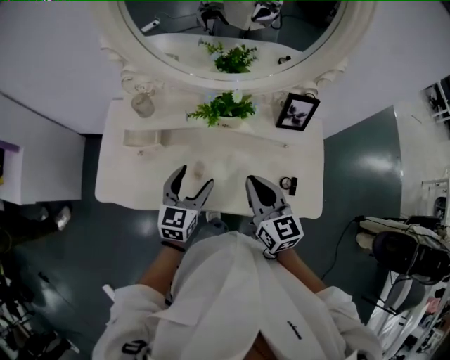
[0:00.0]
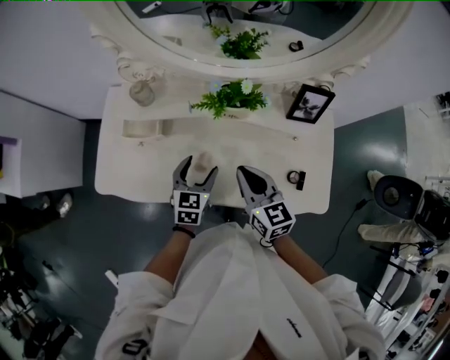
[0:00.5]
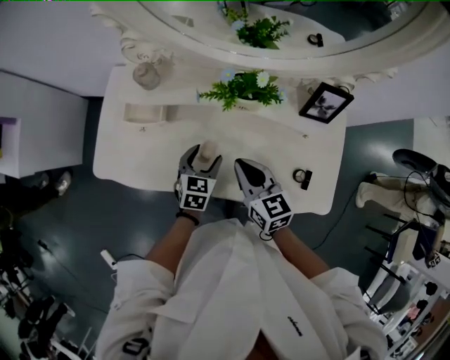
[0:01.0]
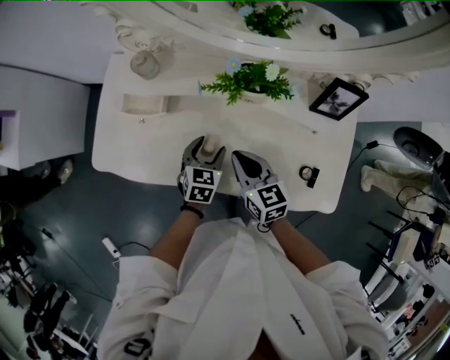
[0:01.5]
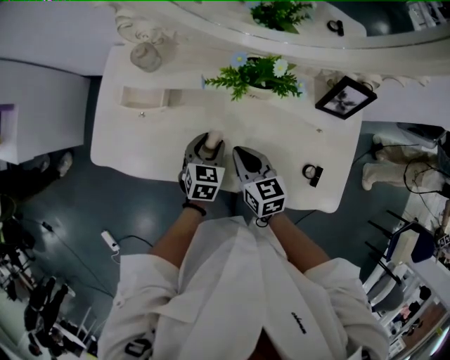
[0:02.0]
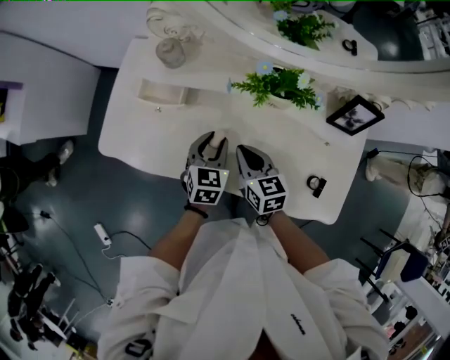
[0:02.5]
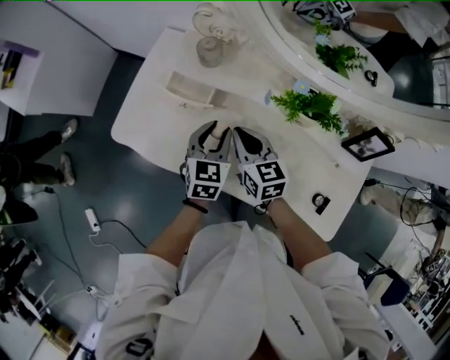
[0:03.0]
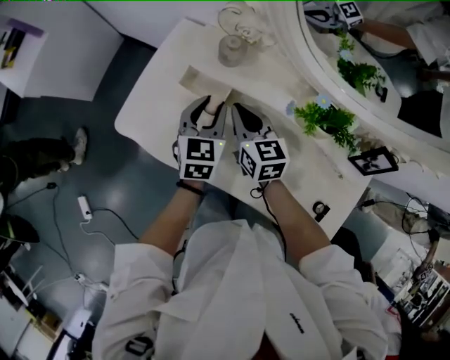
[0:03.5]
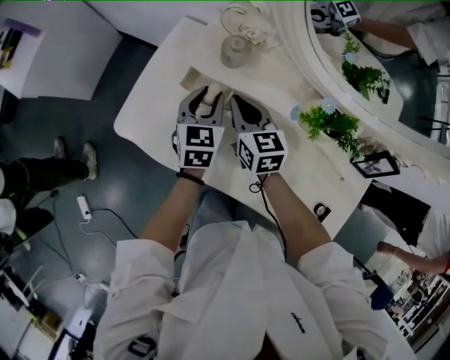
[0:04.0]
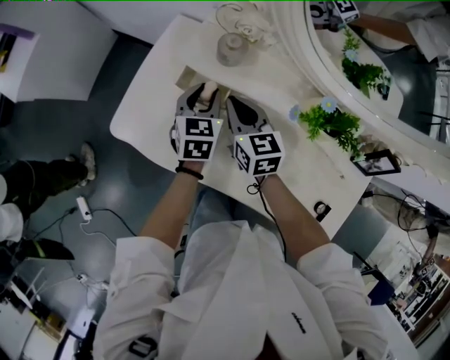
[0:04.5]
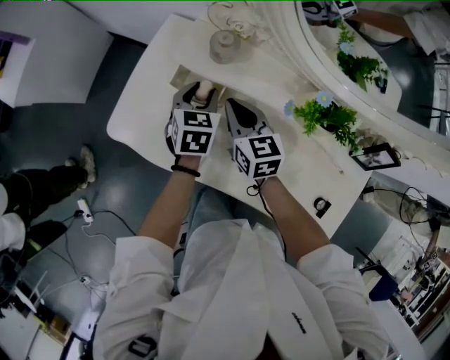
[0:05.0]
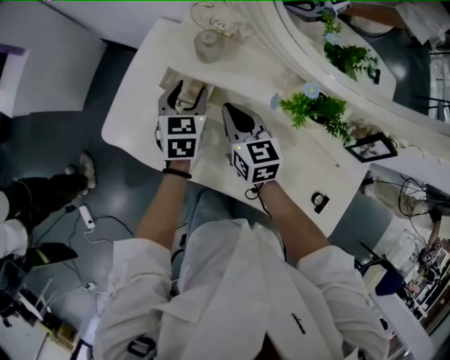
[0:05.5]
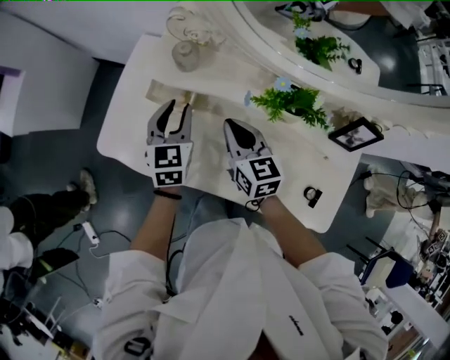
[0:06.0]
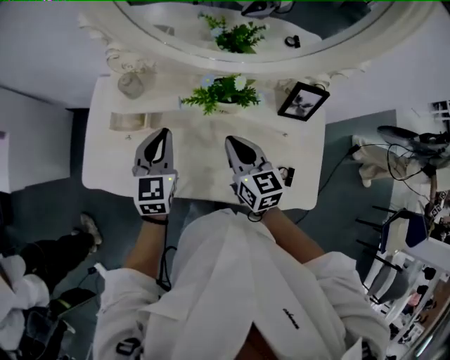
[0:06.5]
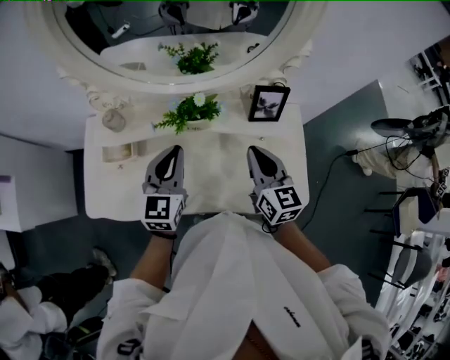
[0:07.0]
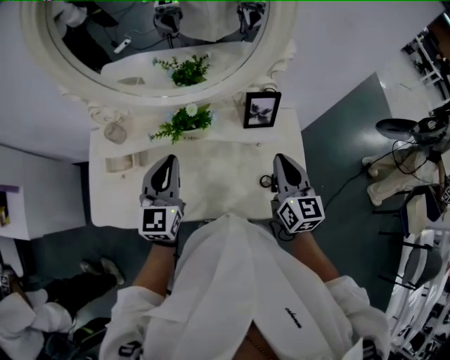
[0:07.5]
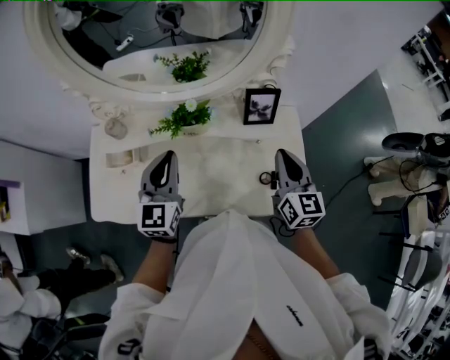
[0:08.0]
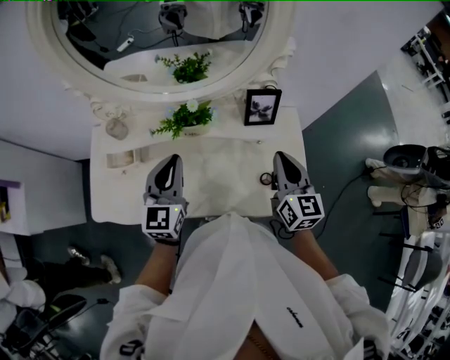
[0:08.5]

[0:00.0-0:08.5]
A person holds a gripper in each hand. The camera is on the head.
0:00.0 to 0:02.0: The grippers both shift downward by roughly 20 cm. The right gripper swivels about 20 degrees; the left gripper turns by approximately 30 degrees, and closes.
0:02.0 to 0:04.0: The left gripper shifts about 25 cm forward, to the left and upward, and rotates some 30 degrees; the right gripper goes approximately 25 cm forward and to the left.
0:04.0 to 0:06.5: The right gripper moves to the right, backward and upward, some 30 cm, and turns by about 20 degrees; the left gripper is displaced to the right, upward and backward by approximately 20 cm, and rotates some 20 degrees.
0:06.5 to 0:08.5: The left gripper travels to the right and upward by about 15 cm, while the right gripper shifts about 25 cm to the right, and turns by some 30 degrees.

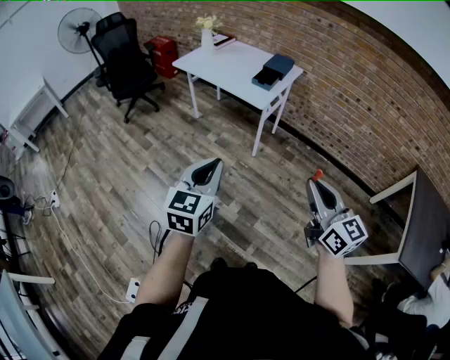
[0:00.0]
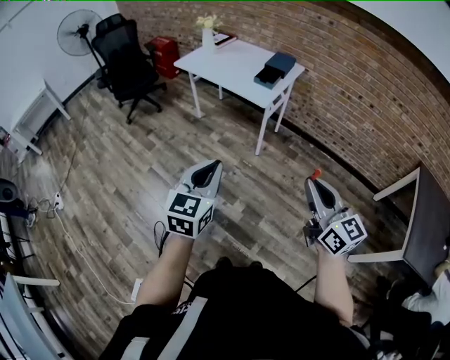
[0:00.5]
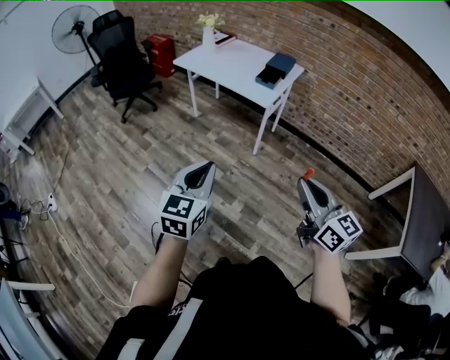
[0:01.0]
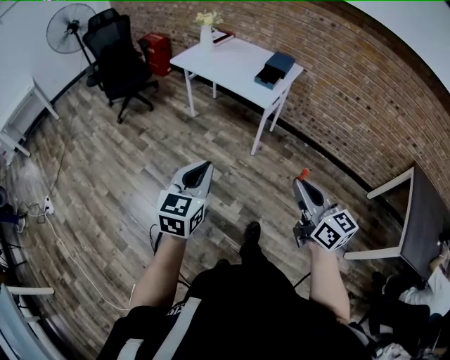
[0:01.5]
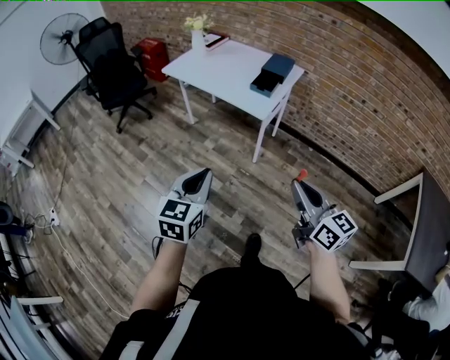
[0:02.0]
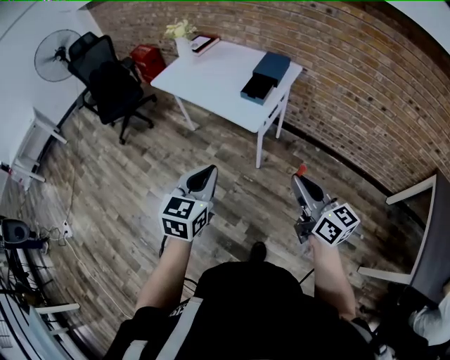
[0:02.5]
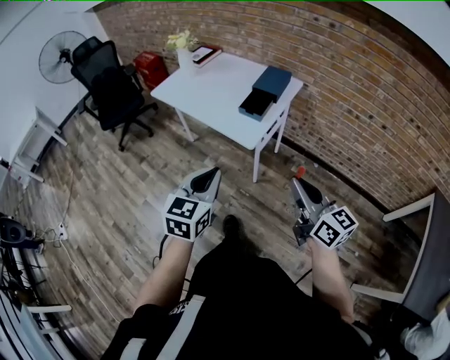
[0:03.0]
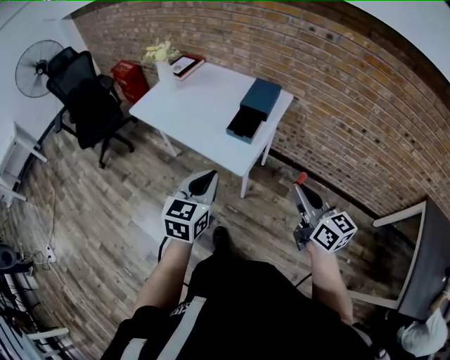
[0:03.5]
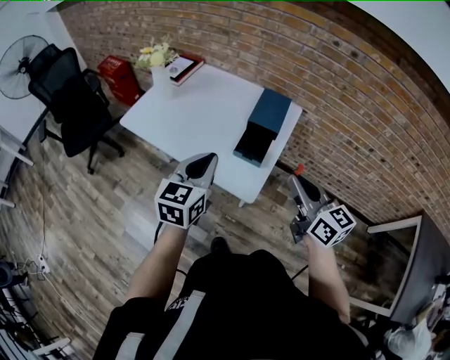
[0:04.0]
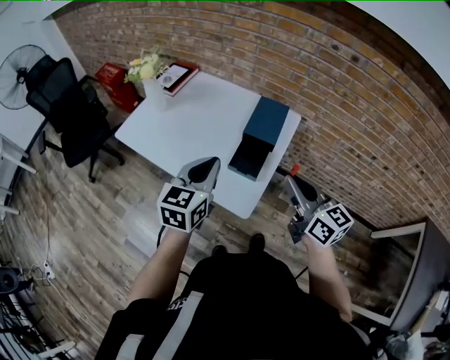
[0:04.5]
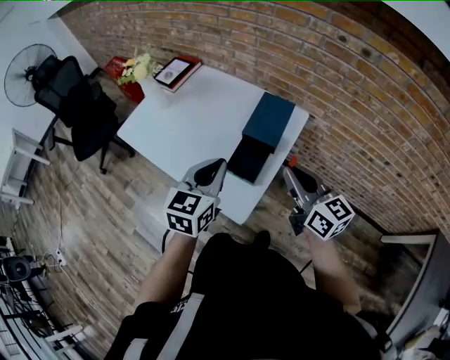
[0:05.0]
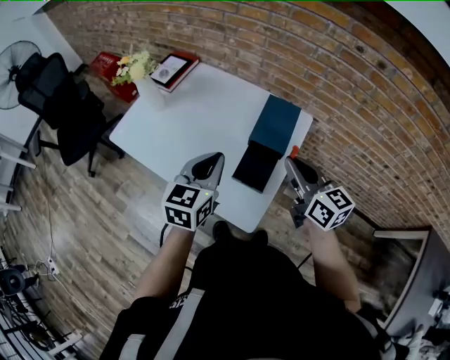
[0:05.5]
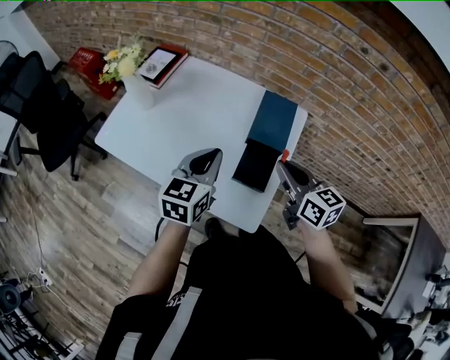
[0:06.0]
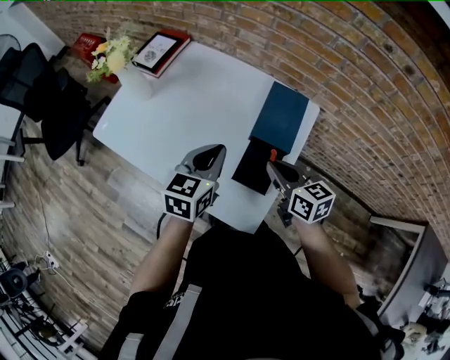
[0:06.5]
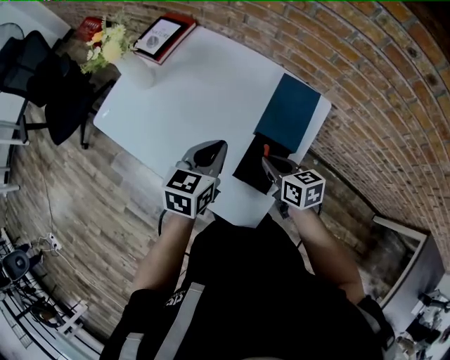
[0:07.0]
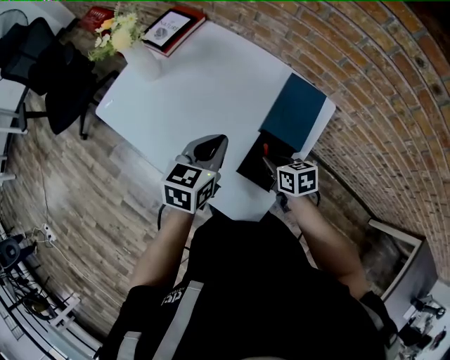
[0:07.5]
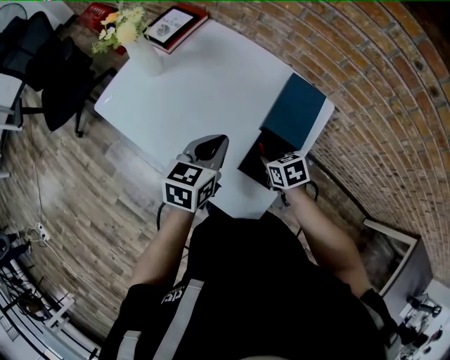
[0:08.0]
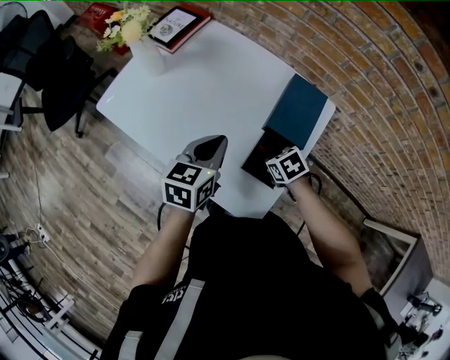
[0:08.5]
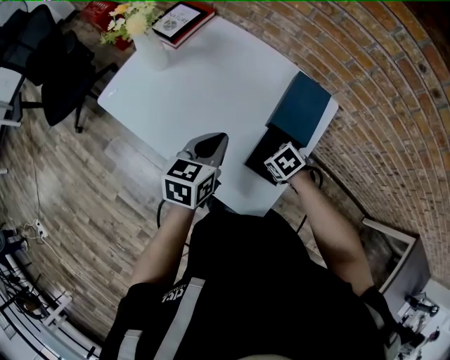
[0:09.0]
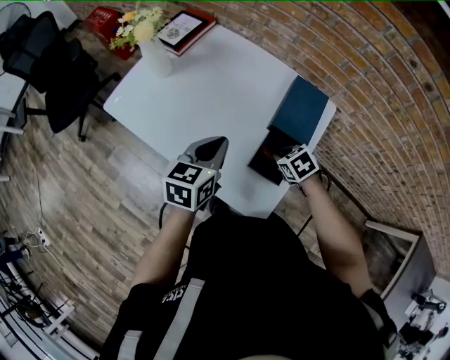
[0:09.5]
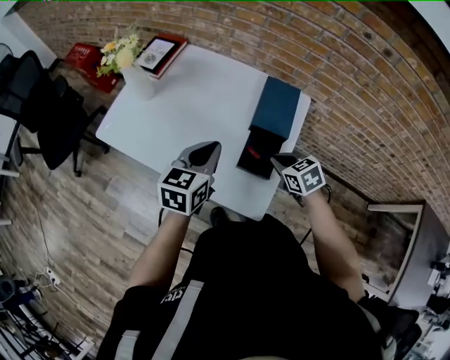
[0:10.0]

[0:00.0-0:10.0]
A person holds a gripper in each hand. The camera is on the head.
0:00.0 to 0:02.0: The two grippers go about 15 cm forward.
0:02.0 to 0:04.0: The pair of grippers is taken forward, some 50 cm.
0:04.0 to 0:06.0: The left gripper shifts roughly 20 cm forward. The right gripper is displaced forward and downward by about 25 cm.
0:06.0 to 0:08.0: The left gripper heads downward, covering some 5 cm, while the right gripper heads downward, covering approximately 25 cm, and tilts its fingers about 40 degrees downward.
0:08.0 to 0:10.0: The left gripper moves about 5 cm. Meanwhile the right gripper travels upward by approximately 10 cm.

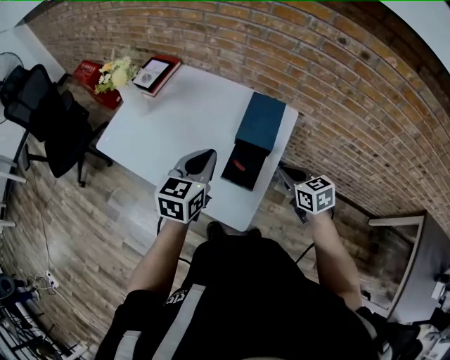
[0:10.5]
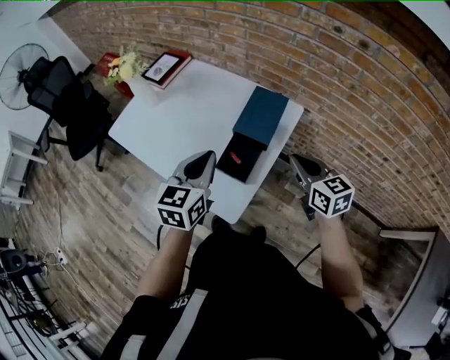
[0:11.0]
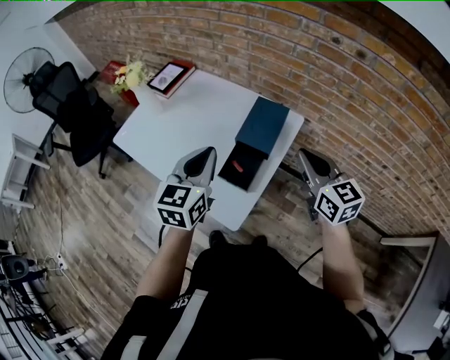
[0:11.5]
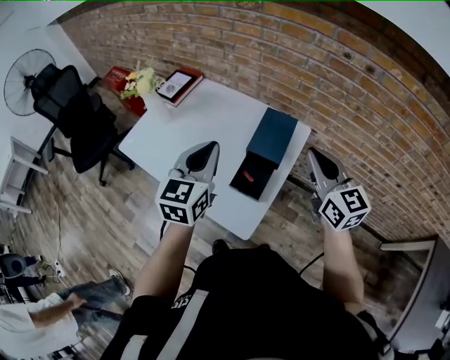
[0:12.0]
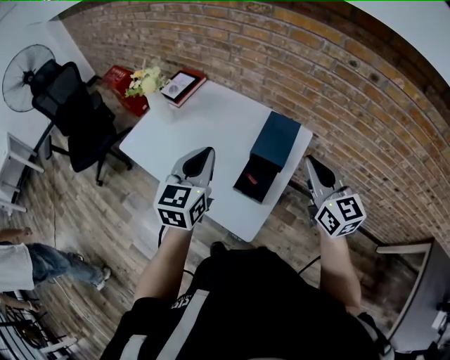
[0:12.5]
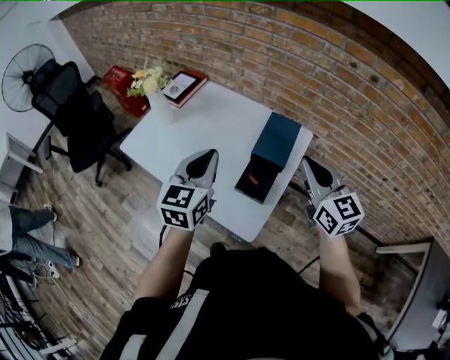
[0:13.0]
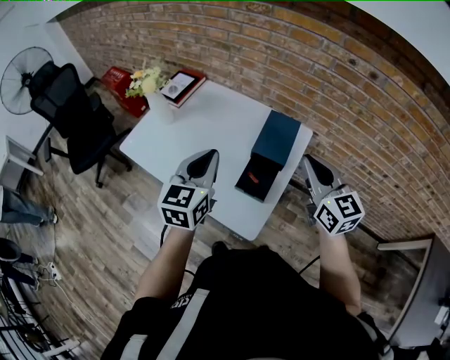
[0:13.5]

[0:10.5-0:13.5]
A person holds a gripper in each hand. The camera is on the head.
0:10.5 to 0:12.0: The left gripper shifts roughly 10 cm upward. The right gripper shifts approximately 20 cm upward, and points its fingers approximately 30 degrees further upward.
0:12.0 to 0:13.5: The grippers move only a little.

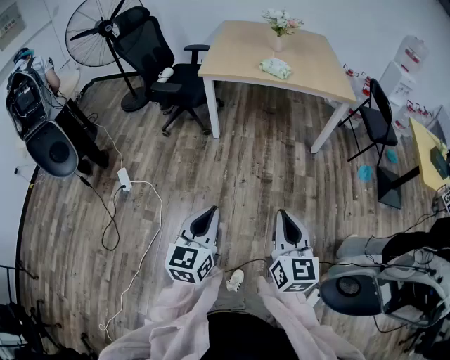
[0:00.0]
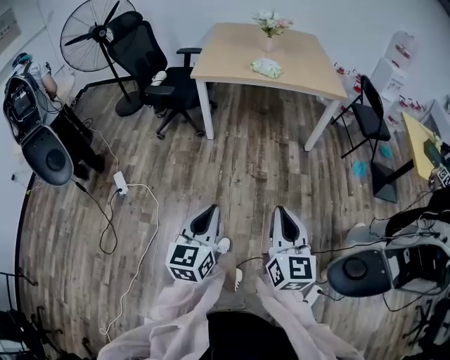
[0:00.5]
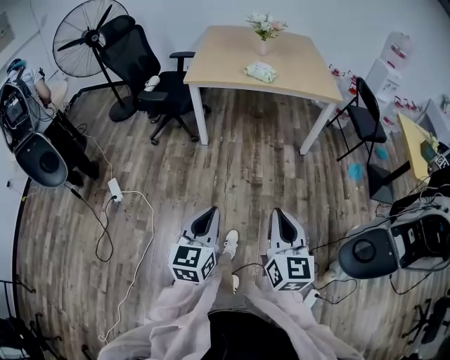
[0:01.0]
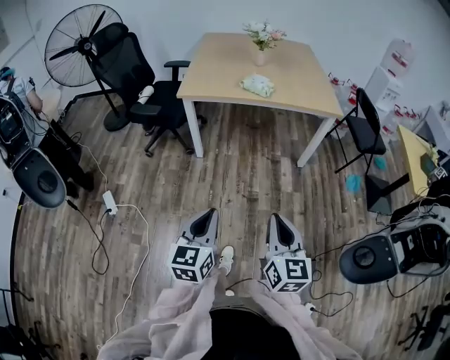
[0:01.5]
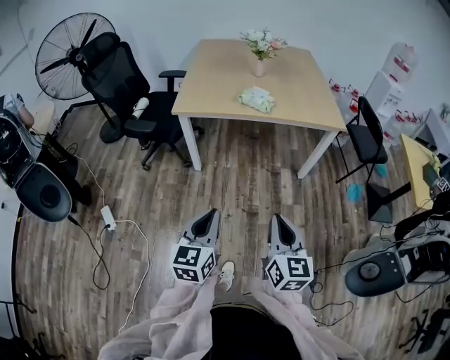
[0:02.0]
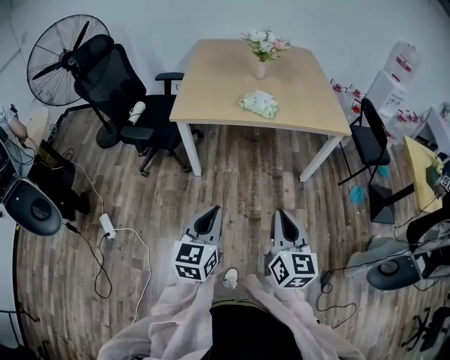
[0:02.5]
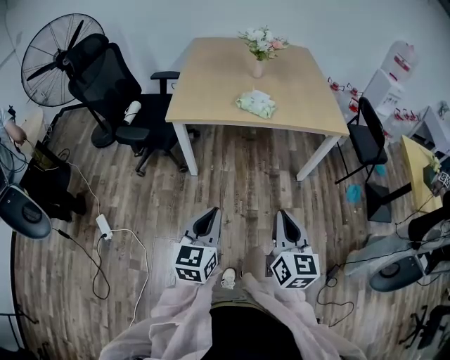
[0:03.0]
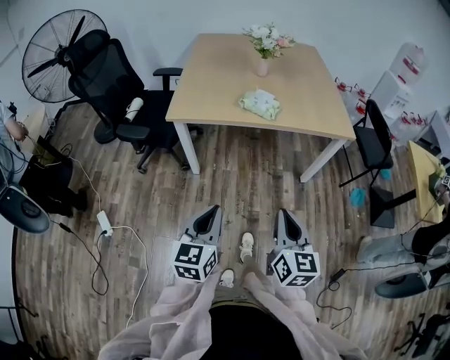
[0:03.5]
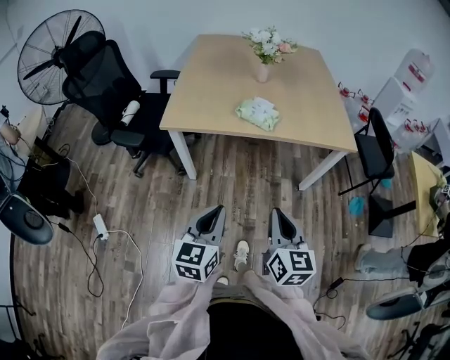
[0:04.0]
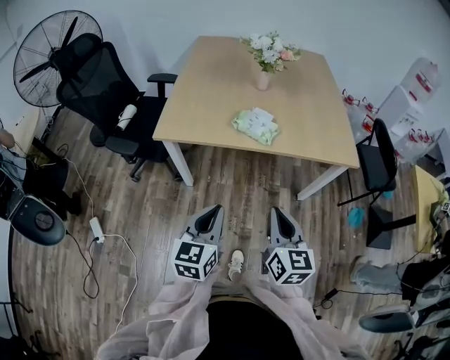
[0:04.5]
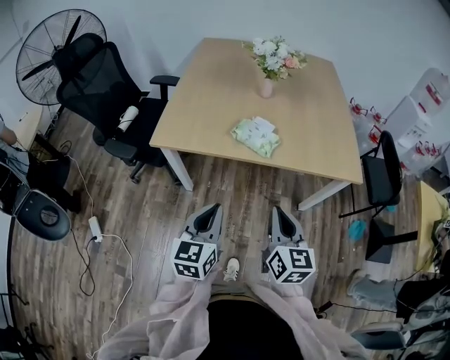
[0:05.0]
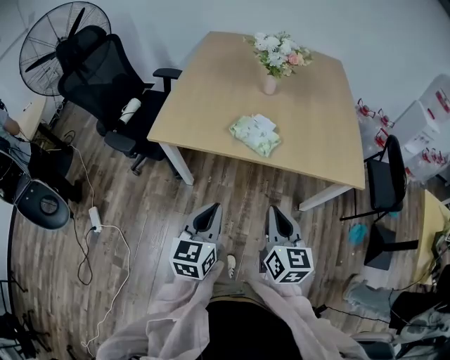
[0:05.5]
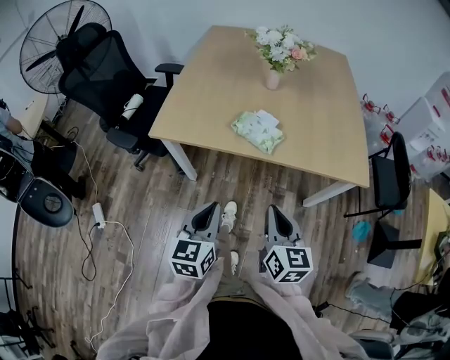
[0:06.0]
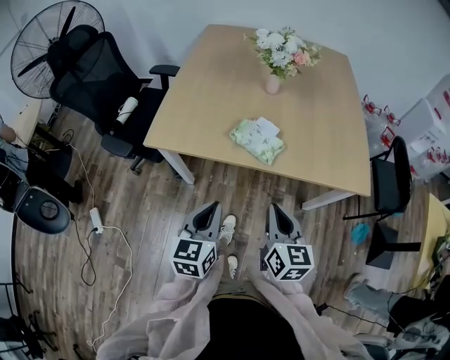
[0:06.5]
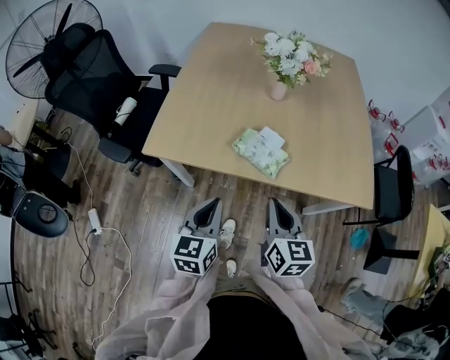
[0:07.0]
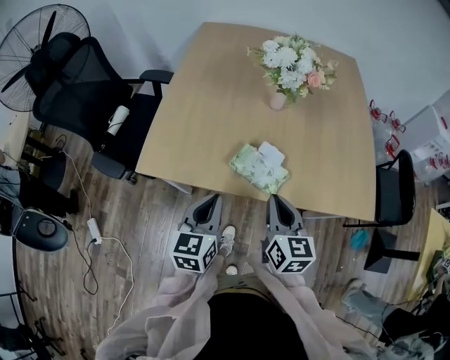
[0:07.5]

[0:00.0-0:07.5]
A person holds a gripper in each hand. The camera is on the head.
0:00.0 to 0:02.0: Both grippers move forward, roughly 25 cm.
0:02.0 to 0:04.0: Both grippers move forward, roughly 20 cm.
0:04.0 to 0:05.5: Both grippers travel together forward, roughly 15 cm.
0:05.5 to 0:07.5: The grippers both shift forward by some 20 cm.
